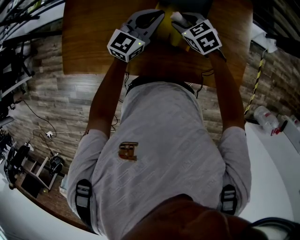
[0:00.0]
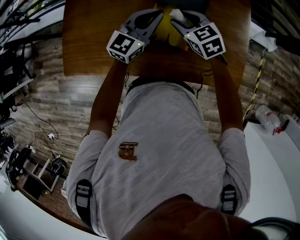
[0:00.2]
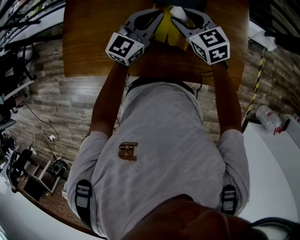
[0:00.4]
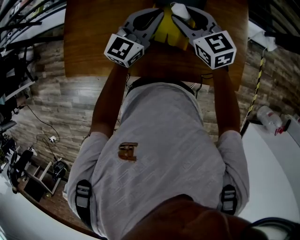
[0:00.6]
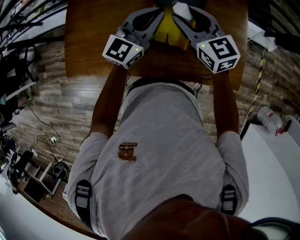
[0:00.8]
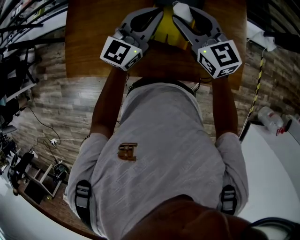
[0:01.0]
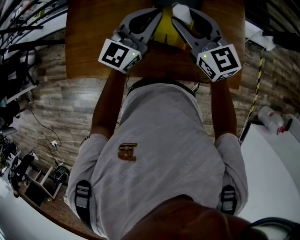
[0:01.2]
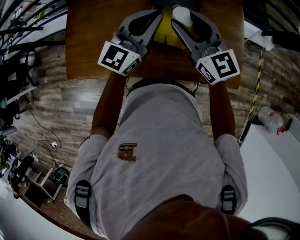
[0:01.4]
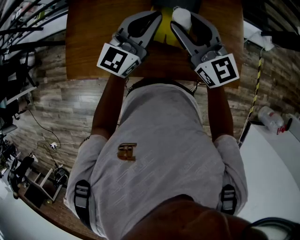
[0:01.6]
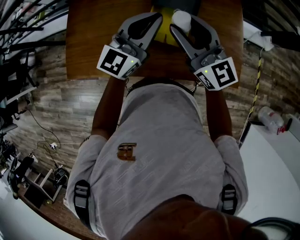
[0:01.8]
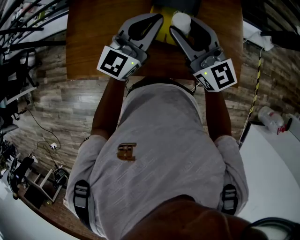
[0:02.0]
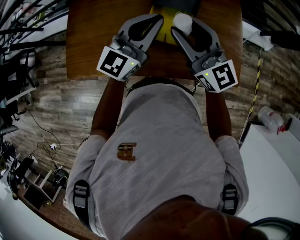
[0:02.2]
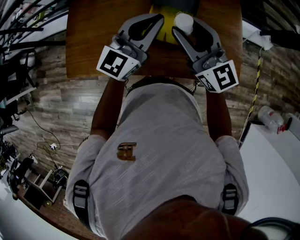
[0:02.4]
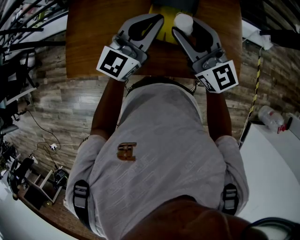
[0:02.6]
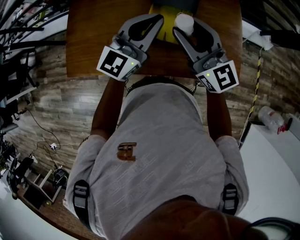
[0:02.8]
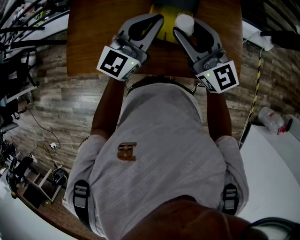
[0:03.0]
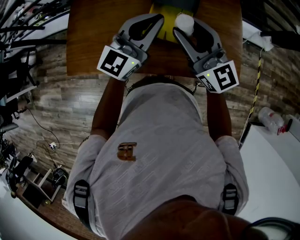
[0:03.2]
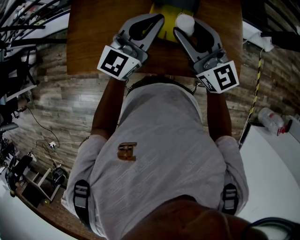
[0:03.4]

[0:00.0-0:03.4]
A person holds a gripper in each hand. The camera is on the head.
0:00.0 to 0:01.6: The left gripper travels upward and backward by approximately 15 cm. Meanwhile the right gripper goes some 25 cm upward and backward, and angles its fingers upward, by roughly 50 degrees.
0:01.6 to 0:03.4: Both grippers travel together backward, about 5 cm.

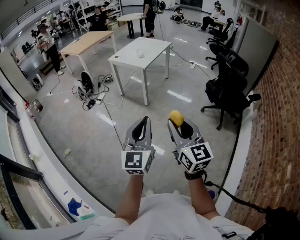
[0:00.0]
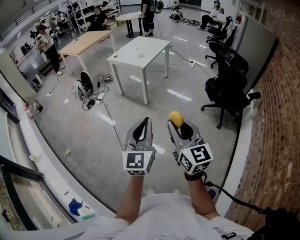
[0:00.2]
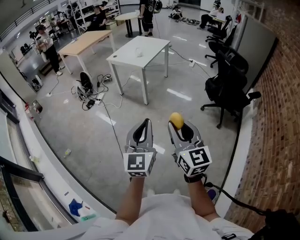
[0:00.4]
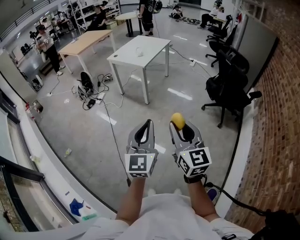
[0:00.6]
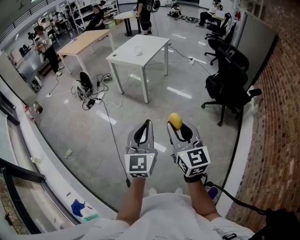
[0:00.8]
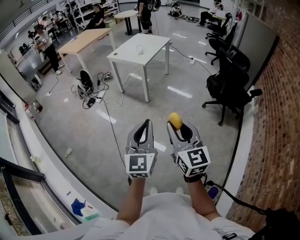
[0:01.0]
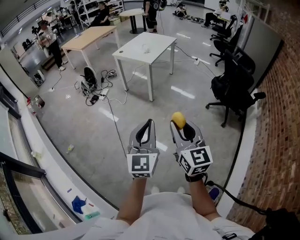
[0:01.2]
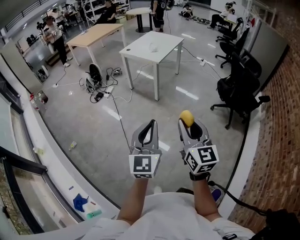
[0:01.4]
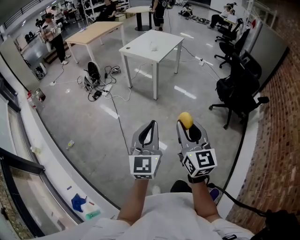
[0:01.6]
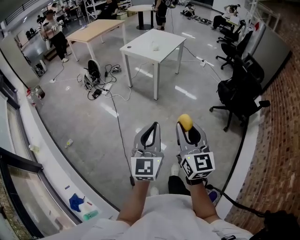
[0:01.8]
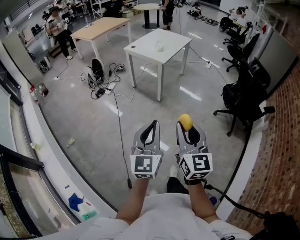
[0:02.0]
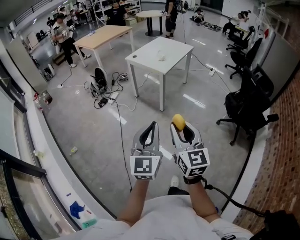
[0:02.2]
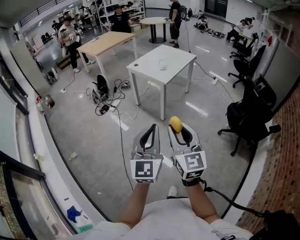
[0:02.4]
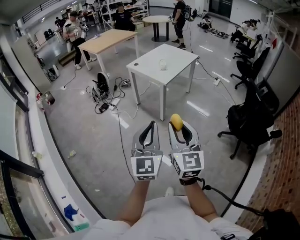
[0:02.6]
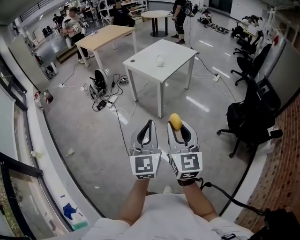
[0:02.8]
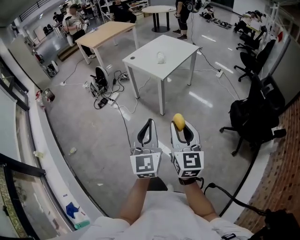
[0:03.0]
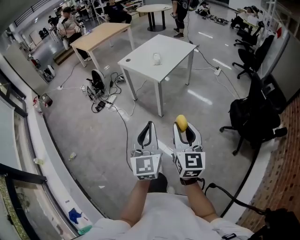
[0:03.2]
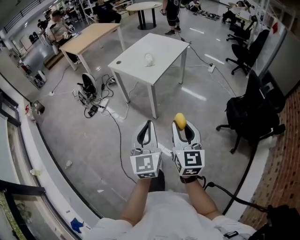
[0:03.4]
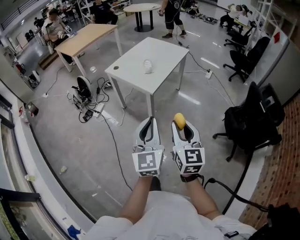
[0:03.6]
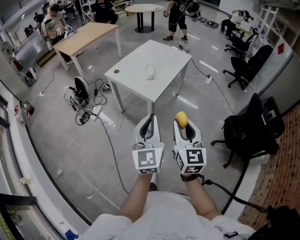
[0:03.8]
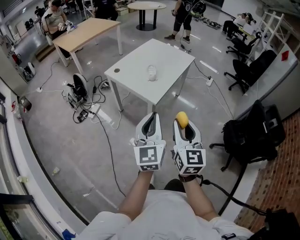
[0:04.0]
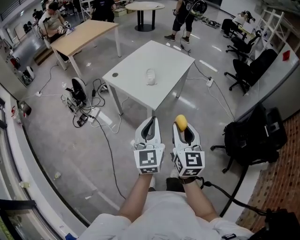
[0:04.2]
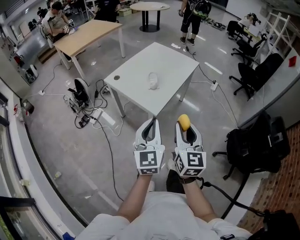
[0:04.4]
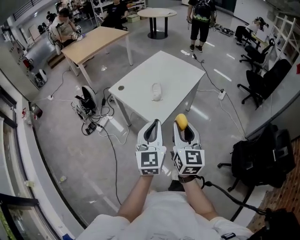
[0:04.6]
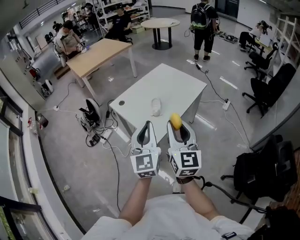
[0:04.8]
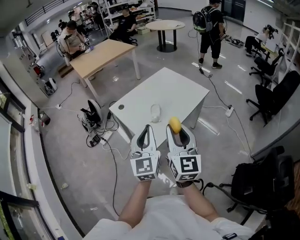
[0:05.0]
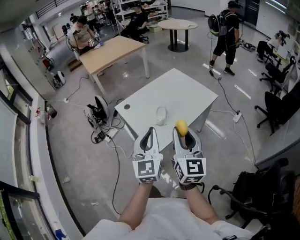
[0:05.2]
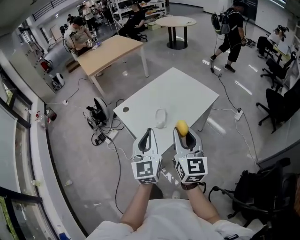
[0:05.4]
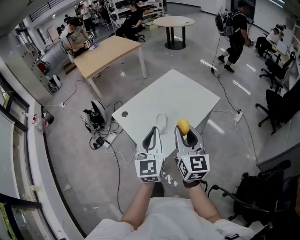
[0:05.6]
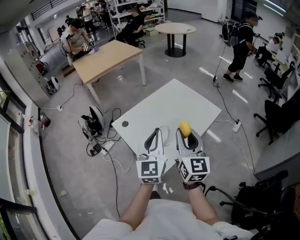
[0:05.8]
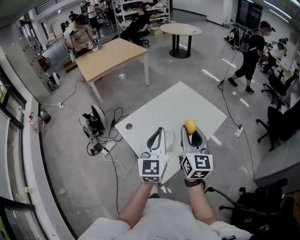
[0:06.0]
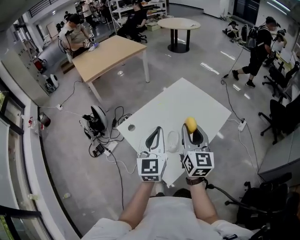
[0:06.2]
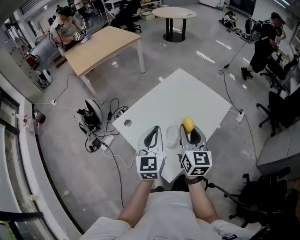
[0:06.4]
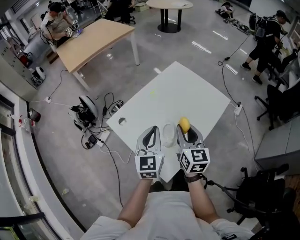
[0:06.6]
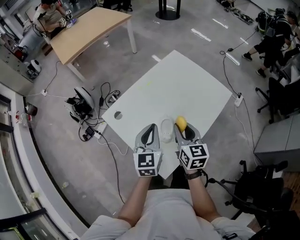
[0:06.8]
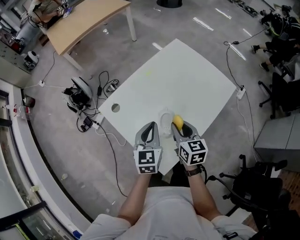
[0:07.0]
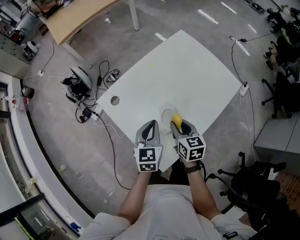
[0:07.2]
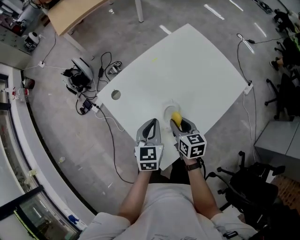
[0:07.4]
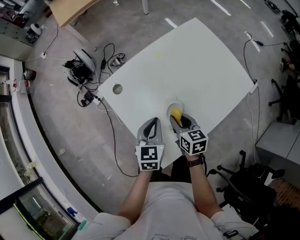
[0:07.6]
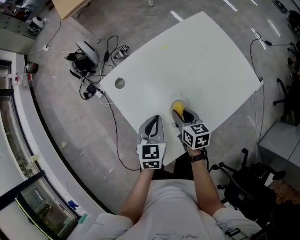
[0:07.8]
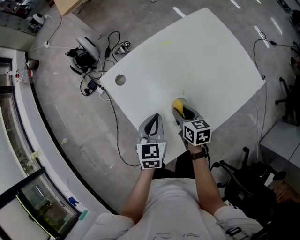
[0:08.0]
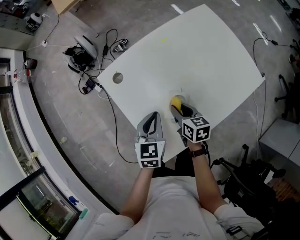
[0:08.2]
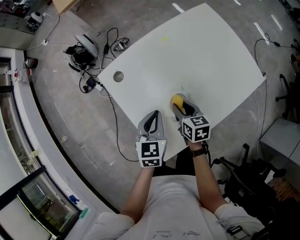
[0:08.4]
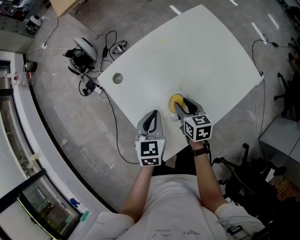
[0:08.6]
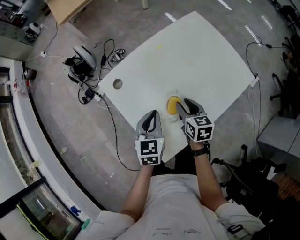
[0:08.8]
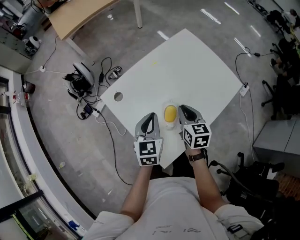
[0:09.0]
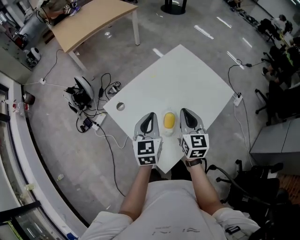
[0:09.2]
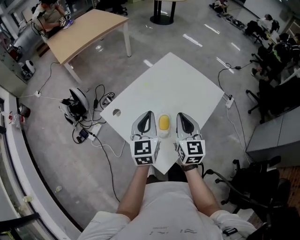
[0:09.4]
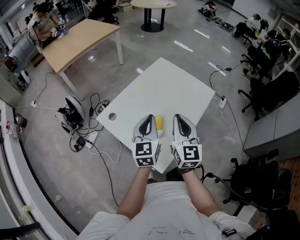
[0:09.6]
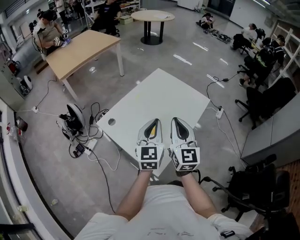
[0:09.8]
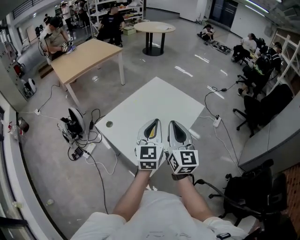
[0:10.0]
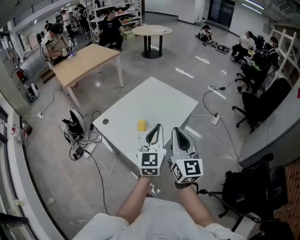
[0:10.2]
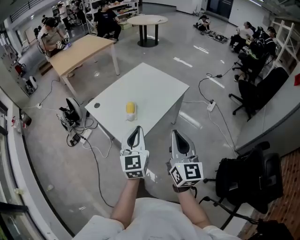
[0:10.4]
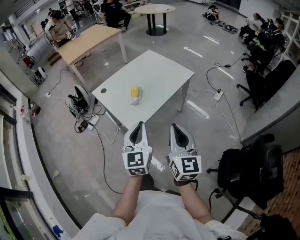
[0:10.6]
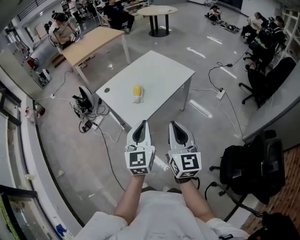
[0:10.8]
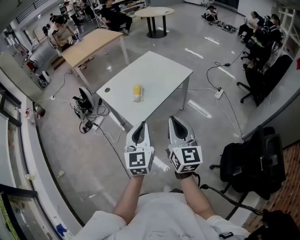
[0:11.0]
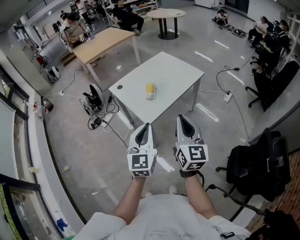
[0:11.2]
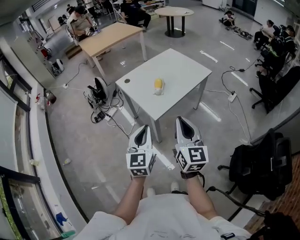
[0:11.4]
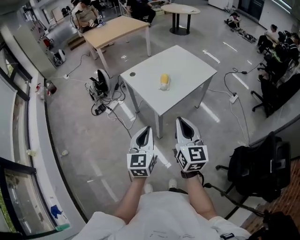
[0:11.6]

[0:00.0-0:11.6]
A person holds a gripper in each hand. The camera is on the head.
0:00.0 to 0:01.4: Both grippers travel together to the left, approximately 5 cm.
0:01.4 to 0:02.8: Both grippers move forward, roughly 25 cm.
0:02.8 to 0:04.4: Both grippers are carried forward, approximately 40 cm.
0:04.4 to 0:05.8: The grippers both shift forward by approximately 30 cm.
0:05.8 to 0:07.2: Both grippers travel together downward and forward, approximately 30 cm. The left gripper points its fingers about 30 degrees further downward; the right gripper tilts its fingers about 40 degrees downward.
0:08.8 to 0:10.2: The right gripper travels upward and backward by some 40 cm, points its fingers some 50 degrees further upward, and closes. The left gripper shifts roughly 35 cm upward, to the right and backward, and tips its fingers upward by about 30 degrees.
0:10.2 to 0:11.6: The right gripper goes some 25 cm backward. Meanwhile the left gripper is displaced backward and to the left by approximately 30 cm.

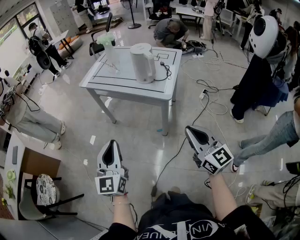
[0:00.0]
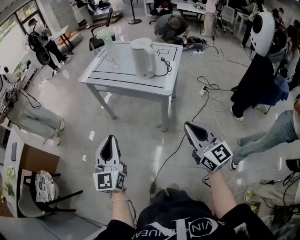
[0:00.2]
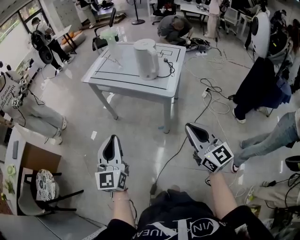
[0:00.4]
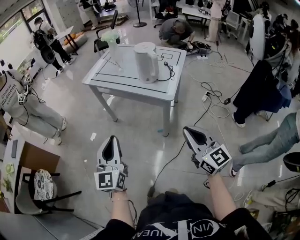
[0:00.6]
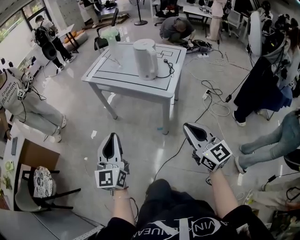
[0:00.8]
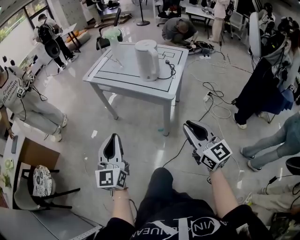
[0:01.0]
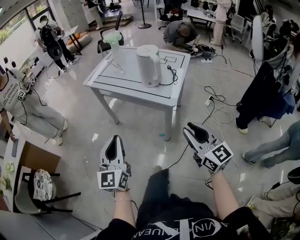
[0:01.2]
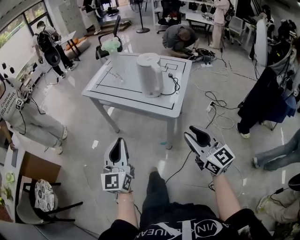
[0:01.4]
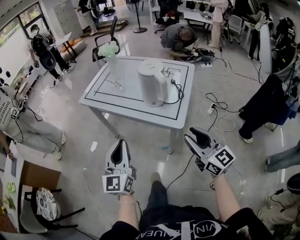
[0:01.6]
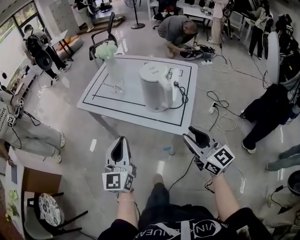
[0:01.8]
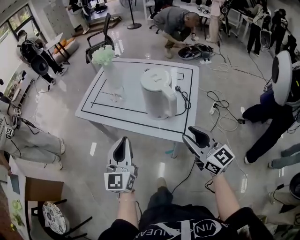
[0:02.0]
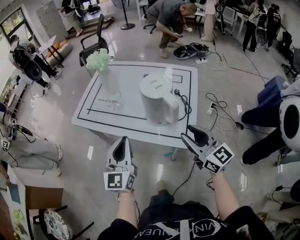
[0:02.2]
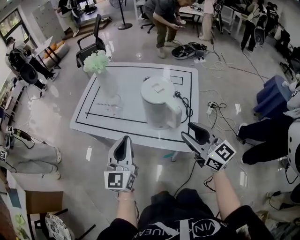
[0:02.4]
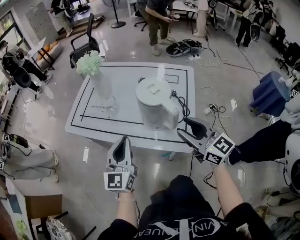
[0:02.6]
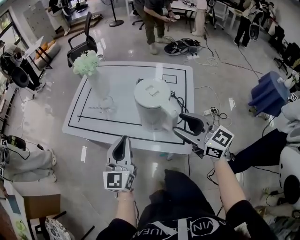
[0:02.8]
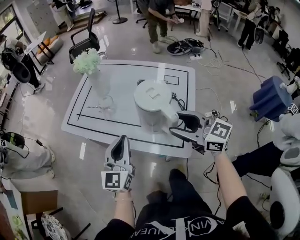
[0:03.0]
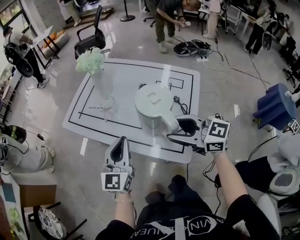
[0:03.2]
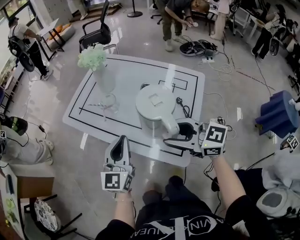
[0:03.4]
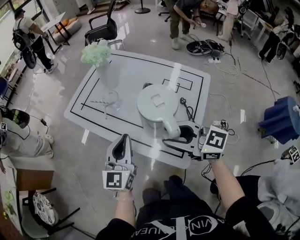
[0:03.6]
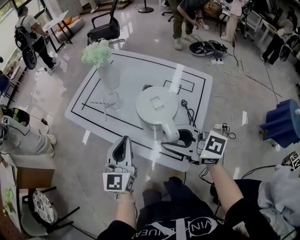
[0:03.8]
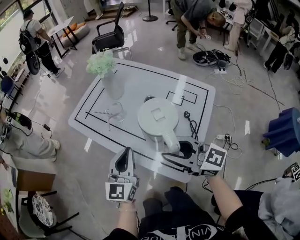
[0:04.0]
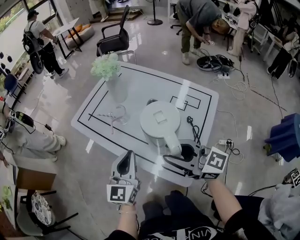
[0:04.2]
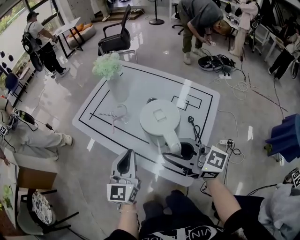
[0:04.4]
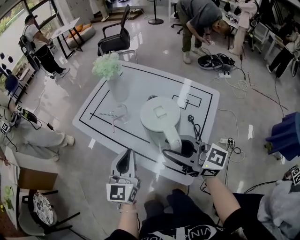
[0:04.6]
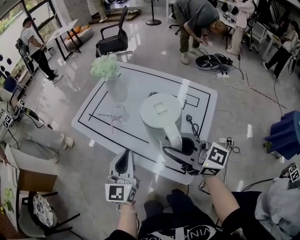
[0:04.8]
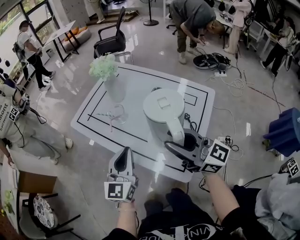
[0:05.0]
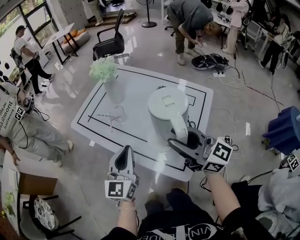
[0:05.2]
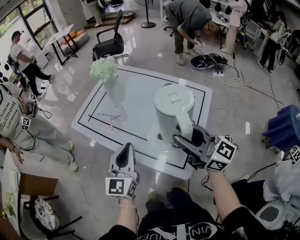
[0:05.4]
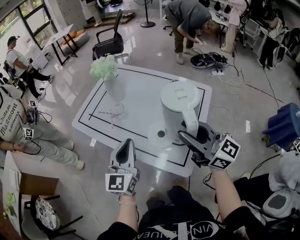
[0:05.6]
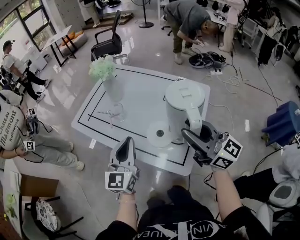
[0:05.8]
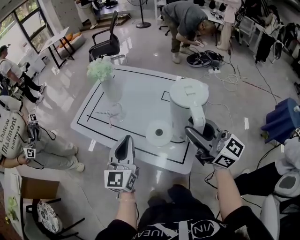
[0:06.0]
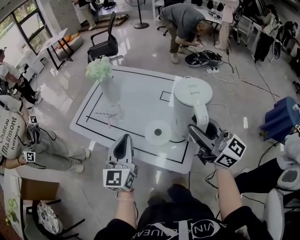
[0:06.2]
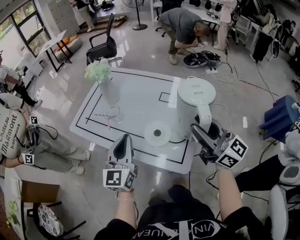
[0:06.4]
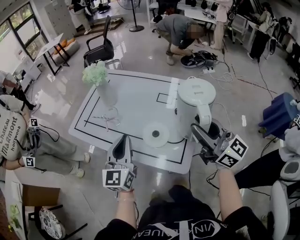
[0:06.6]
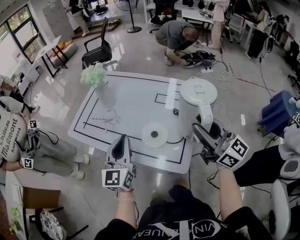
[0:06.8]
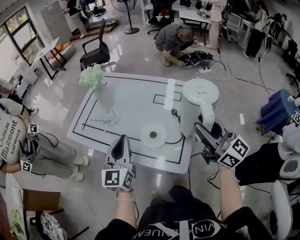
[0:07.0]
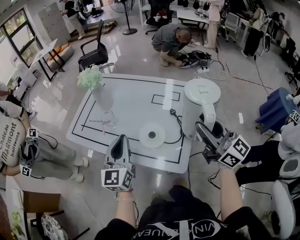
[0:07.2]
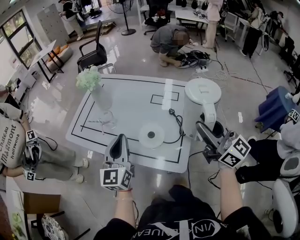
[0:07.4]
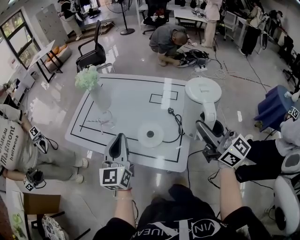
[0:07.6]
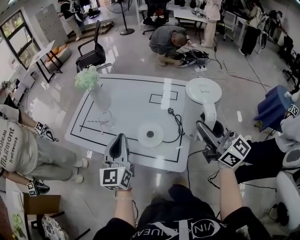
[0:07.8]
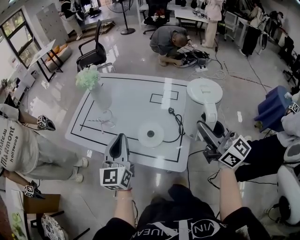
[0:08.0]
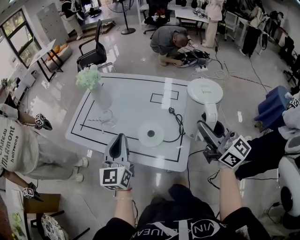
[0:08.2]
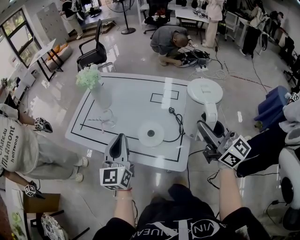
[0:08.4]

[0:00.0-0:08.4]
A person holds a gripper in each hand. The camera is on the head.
0:00.0 to 0:01.4: The left gripper moves forward and to the right, roughly 15 cm. The right gripper travels forward by roughly 15 cm, and opens up.
0:01.4 to 0:02.8: The grippers both shift forward by some 30 cm. The right gripper opens up.
0:02.8 to 0:04.2: The right gripper heads forward, covering approximately 5 cm, and changes its angle by roughly 30 degrees.
0:04.2 to 0:05.6: The right gripper shifts about 10 cm to the right and upward.
0:05.6 to 0:07.0: The right gripper travels to the right by approximately 10 cm.
0:07.0 to 0:08.4: The grippers make only small movements.
